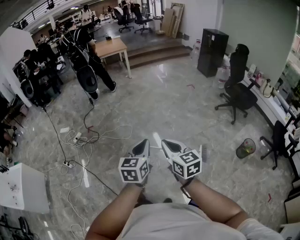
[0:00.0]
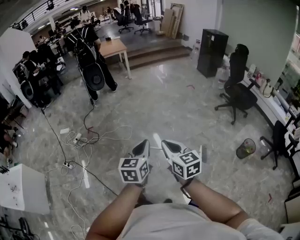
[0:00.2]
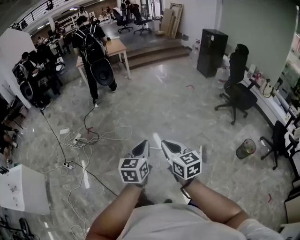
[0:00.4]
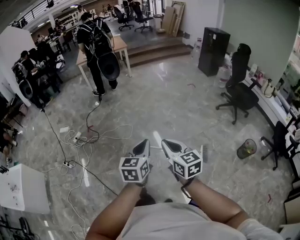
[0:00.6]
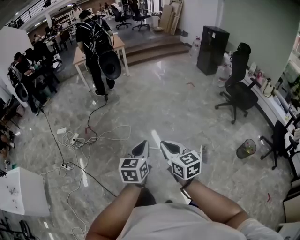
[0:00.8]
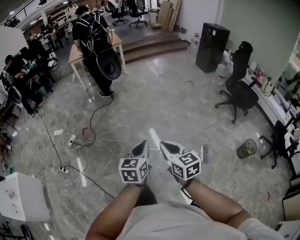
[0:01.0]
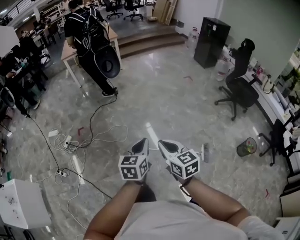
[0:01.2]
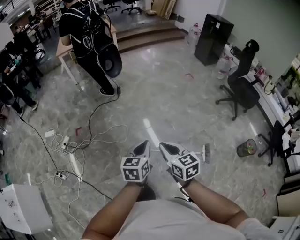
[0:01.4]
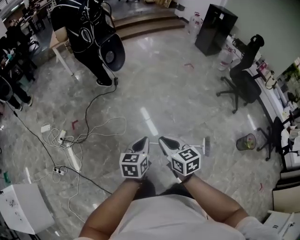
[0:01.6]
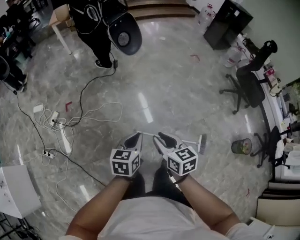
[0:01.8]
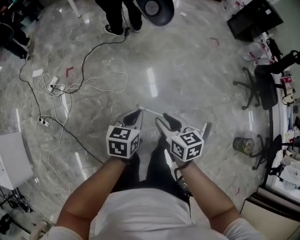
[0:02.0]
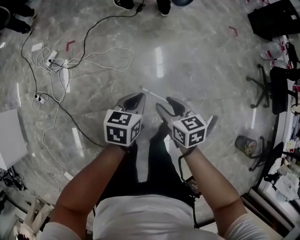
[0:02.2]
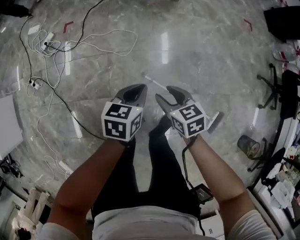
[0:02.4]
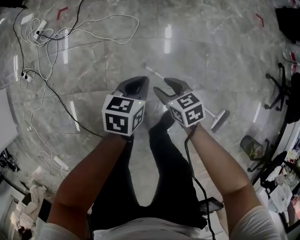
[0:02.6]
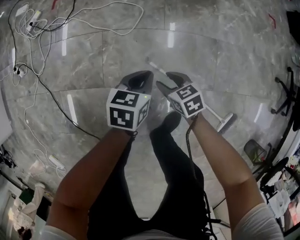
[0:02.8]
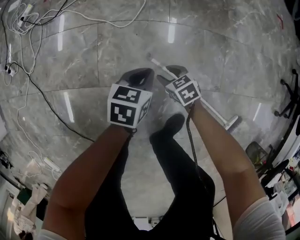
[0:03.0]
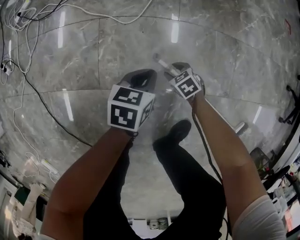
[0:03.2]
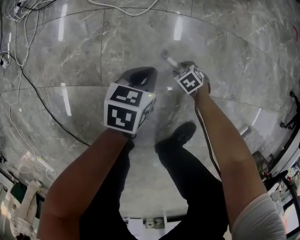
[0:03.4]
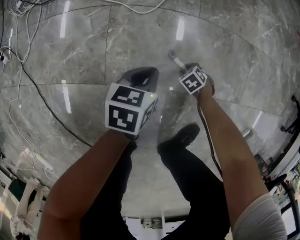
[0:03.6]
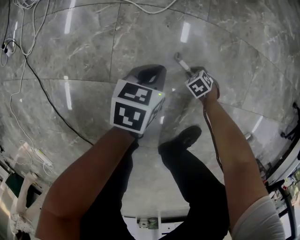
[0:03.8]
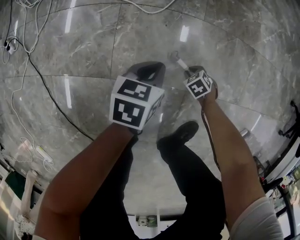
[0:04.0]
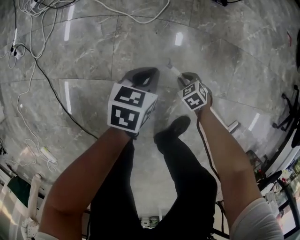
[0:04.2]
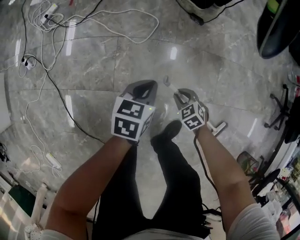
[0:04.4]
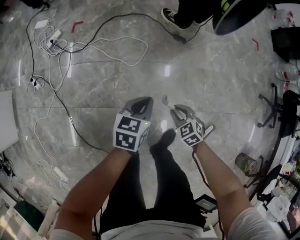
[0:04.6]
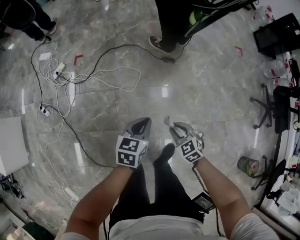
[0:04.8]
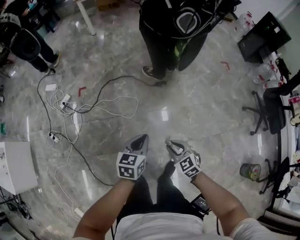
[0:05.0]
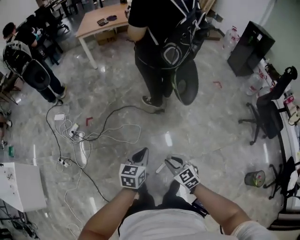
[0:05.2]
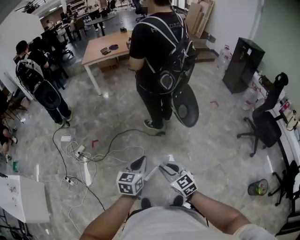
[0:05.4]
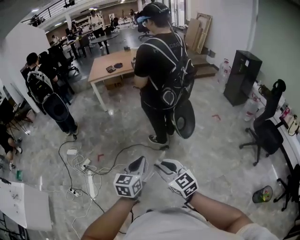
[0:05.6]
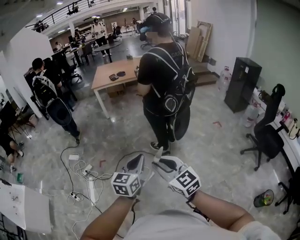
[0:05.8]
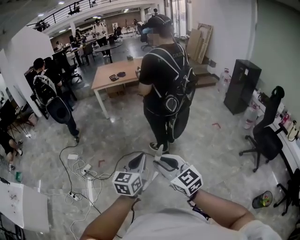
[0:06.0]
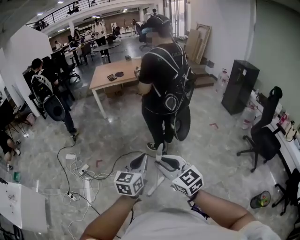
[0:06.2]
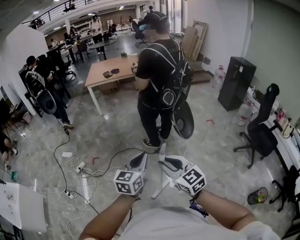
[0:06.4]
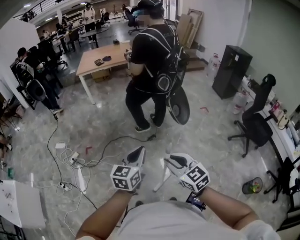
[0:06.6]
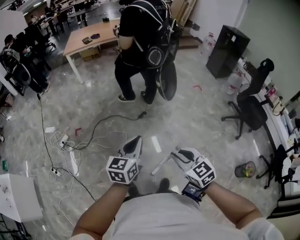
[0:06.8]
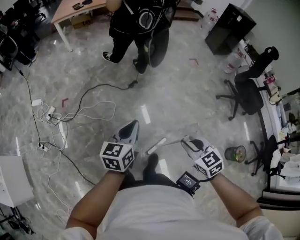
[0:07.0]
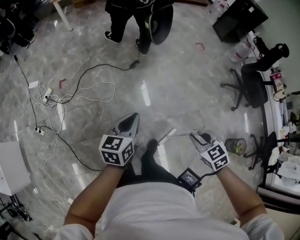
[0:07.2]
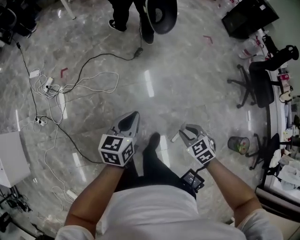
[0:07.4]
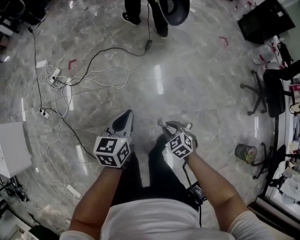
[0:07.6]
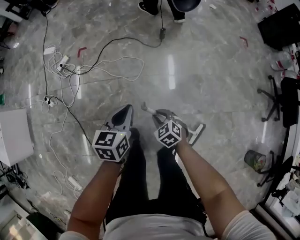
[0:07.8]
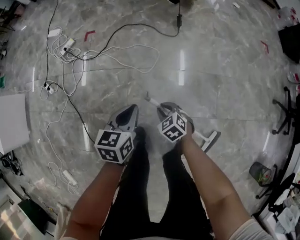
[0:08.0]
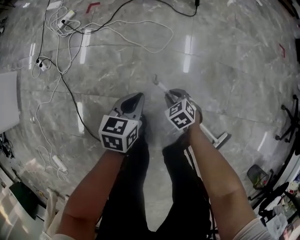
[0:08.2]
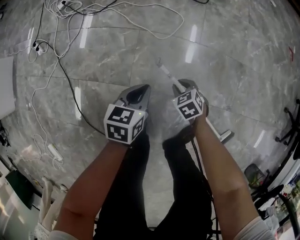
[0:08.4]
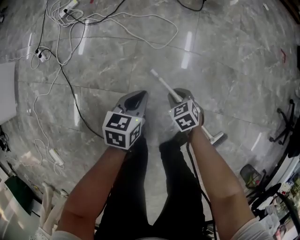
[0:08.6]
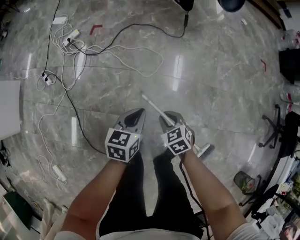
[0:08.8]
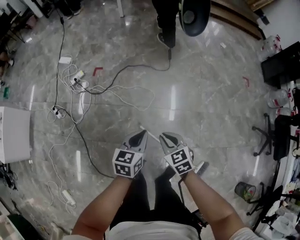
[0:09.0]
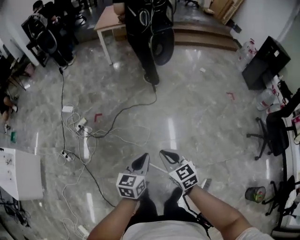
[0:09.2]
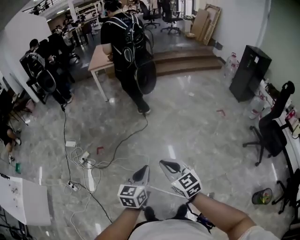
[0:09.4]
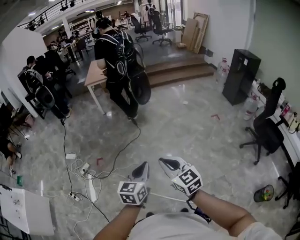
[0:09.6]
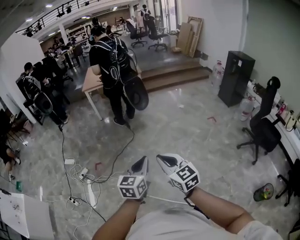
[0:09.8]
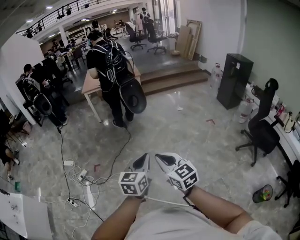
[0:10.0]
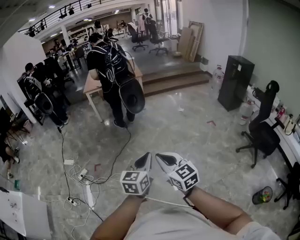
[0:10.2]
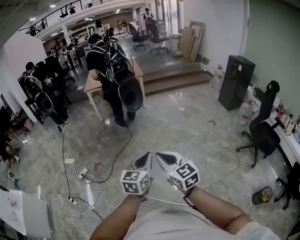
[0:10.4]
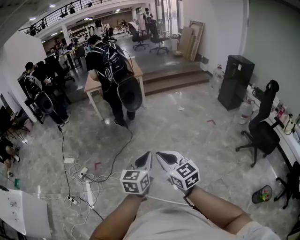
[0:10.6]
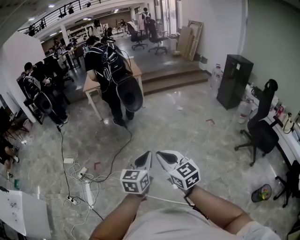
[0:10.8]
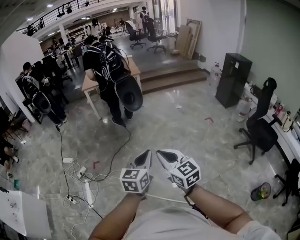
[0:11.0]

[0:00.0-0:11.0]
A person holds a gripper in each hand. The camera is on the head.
0:00.0 to 0:01.6: The left gripper moves forward and downward, roughly 40 cm. Meanwhile the right gripper heads forward, covering about 35 cm.
0:01.6 to 0:03.2: Both grippers move downward, approximately 90 cm. The right gripper tips its fingers downward by roughly 40 degrees, and opens up. Meanwhile the left gripper changes its angle by approximately 30 degrees.
0:03.2 to 0:04.8: Both grippers travel together upward, roughly 50 cm. The right gripper swivels roughly 30 degrees, and closes up.
0:04.8 to 0:06.2: The two grippers go some 50 cm upward. The right gripper points its fingers some 40 degrees further upward. The left gripper swivels approximately 30 degrees.
0:06.2 to 0:07.8: The grippers both shift downward by approximately 60 cm. The left gripper turns by roughly 30 degrees. Meanwhile the right gripper tips its fingers downward by some 50 degrees.
0:07.8 to 0:09.4: The left gripper heads upward, covering approximately 35 cm. The right gripper heads upward, covering about 50 cm, and tilts its fingers some 40 degrees upward.
0:09.4 to 0:11.0: The left gripper shifts some 15 cm upward and to the right. Meanwhile the right gripper shifts some 15 cm upward and backward.

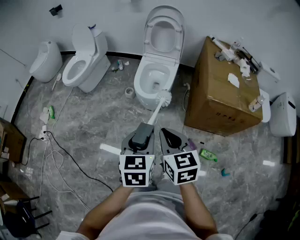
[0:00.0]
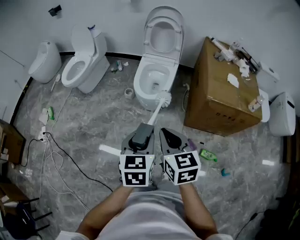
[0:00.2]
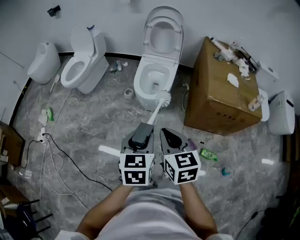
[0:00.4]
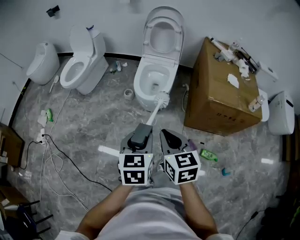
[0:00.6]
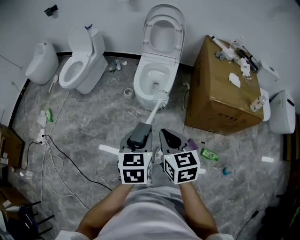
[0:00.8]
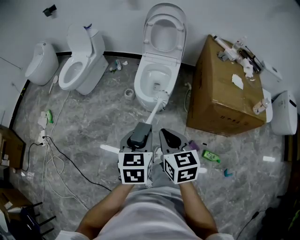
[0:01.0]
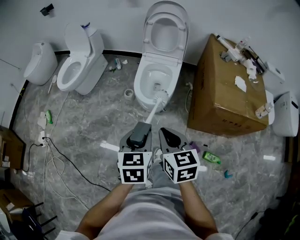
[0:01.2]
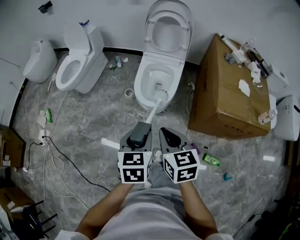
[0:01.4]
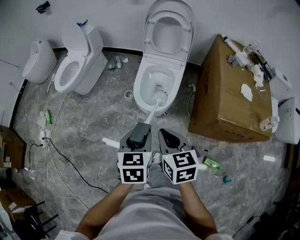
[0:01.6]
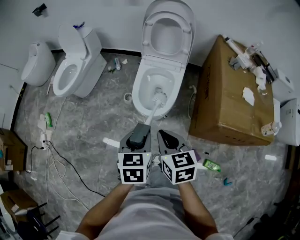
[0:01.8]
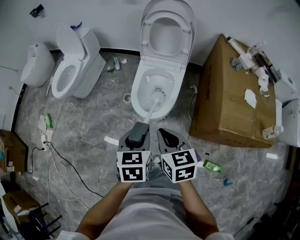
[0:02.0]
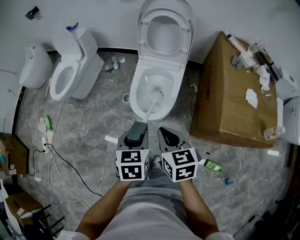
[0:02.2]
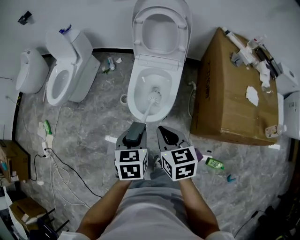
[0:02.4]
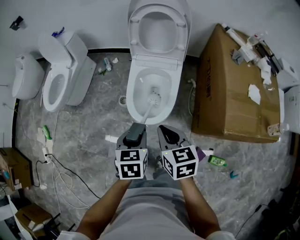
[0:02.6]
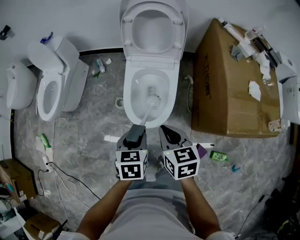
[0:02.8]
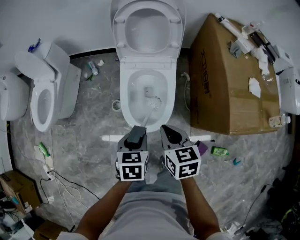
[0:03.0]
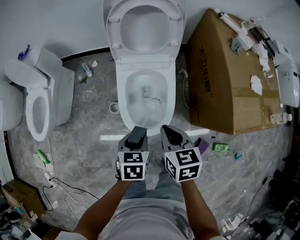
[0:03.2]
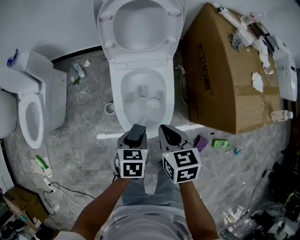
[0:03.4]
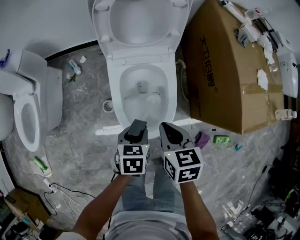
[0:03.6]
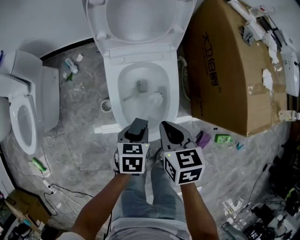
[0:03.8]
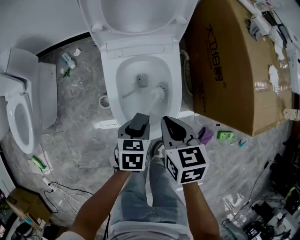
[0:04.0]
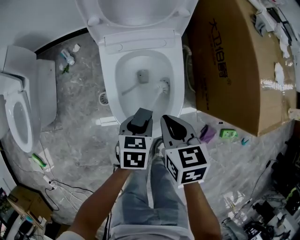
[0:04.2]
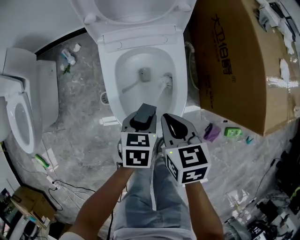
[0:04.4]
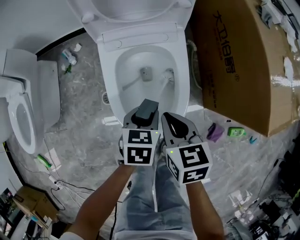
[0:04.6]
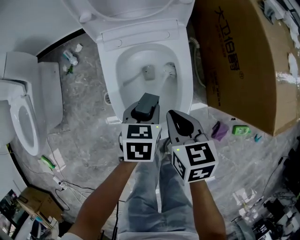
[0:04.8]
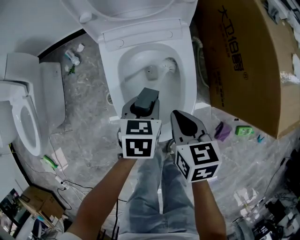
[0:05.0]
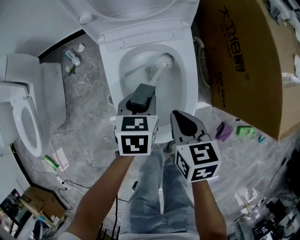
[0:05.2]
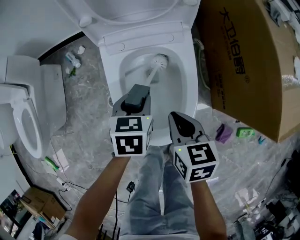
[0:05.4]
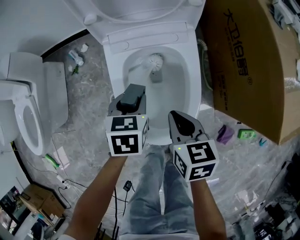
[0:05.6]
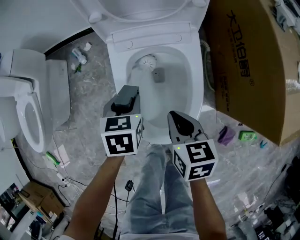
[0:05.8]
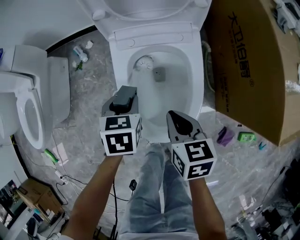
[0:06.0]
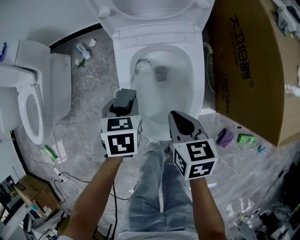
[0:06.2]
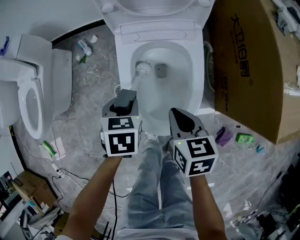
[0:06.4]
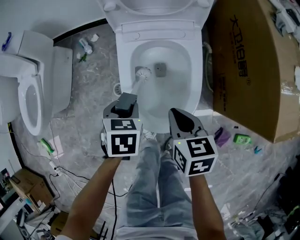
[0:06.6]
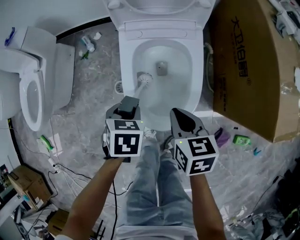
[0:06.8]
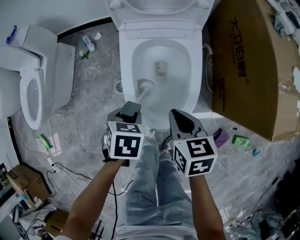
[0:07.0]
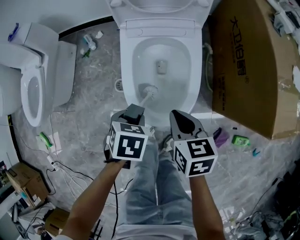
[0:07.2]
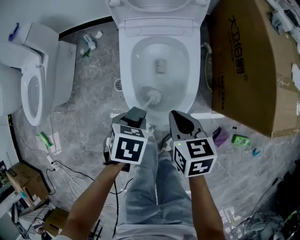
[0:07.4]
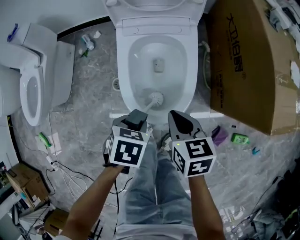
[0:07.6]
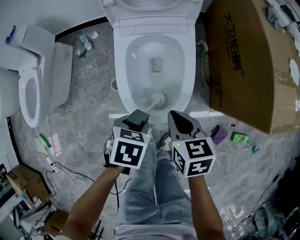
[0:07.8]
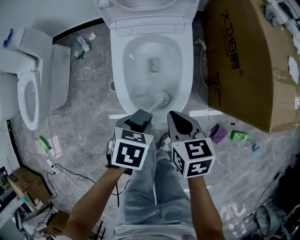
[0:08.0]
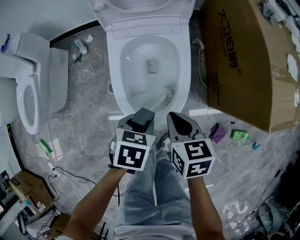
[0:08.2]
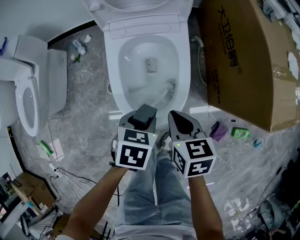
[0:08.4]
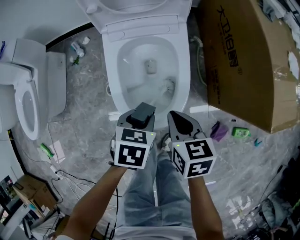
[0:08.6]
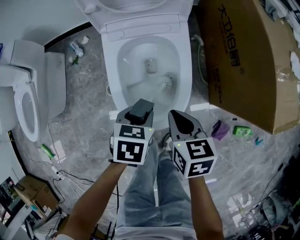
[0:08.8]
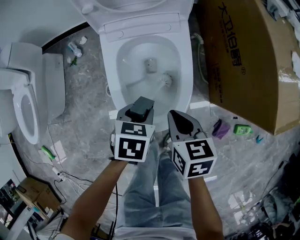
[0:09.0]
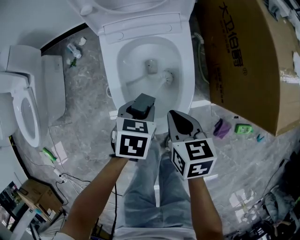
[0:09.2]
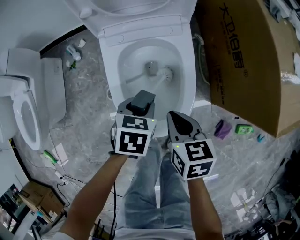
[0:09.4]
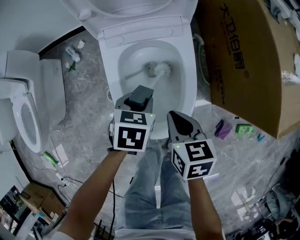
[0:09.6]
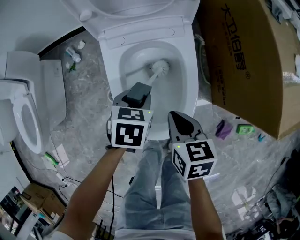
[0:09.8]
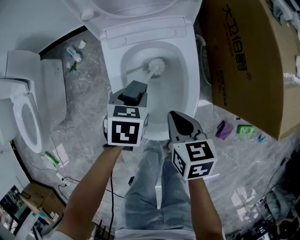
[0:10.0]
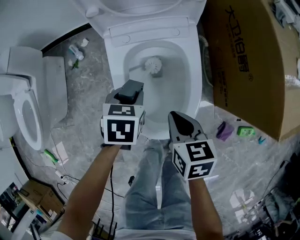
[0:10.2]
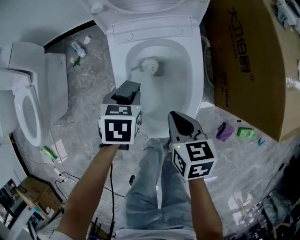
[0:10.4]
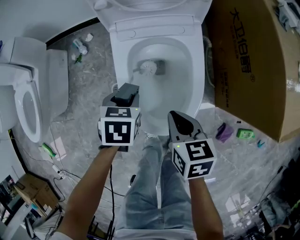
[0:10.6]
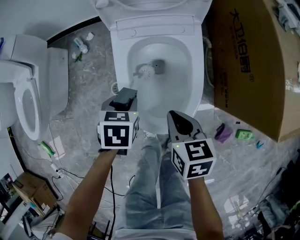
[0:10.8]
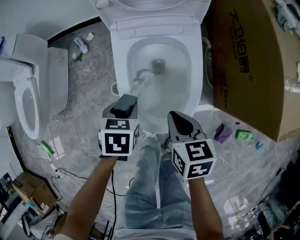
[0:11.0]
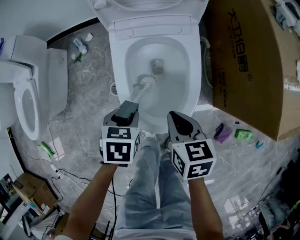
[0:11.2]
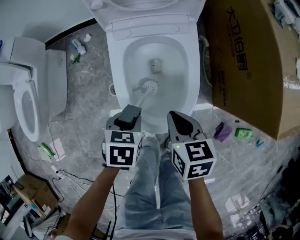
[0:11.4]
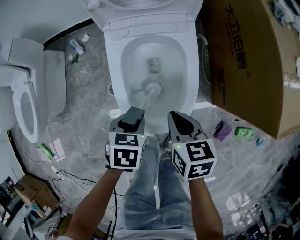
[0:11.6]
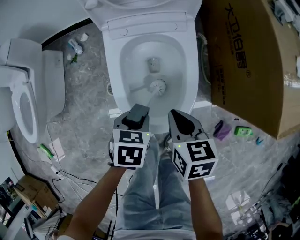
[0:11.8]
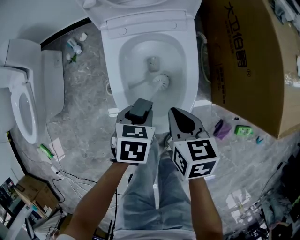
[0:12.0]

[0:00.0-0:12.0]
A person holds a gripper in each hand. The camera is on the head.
0:00.0 to 0:01.6: The grippers both shift forward by approximately 20 cm.
0:01.6 to 0:03.0: Both grippers move forward and downward, some 30 cm. The left gripper swivels roughly 20 degrees.
0:03.0 to 0:04.4: The two grippers go some 20 cm downward and forward.
0:04.4 to 0:06.0: The left gripper moves to the left and forward, approximately 10 cm. Meanwhile the right gripper shifts by about 5 cm.
0:06.0 to 0:07.6: The right gripper ends up about 10 cm from where it was. Meanwhile the left gripper moves some 20 cm.
0:07.6 to 0:09.0: The left gripper goes roughly 10 cm forward.
0:09.0 to 0:10.4: The left gripper heads to the left and forward, covering roughly 10 cm.
0:10.4 to 0:12.0: The left gripper shifts some 10 cm backward and to the right.

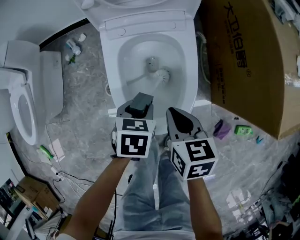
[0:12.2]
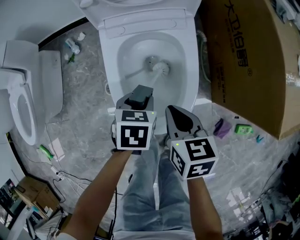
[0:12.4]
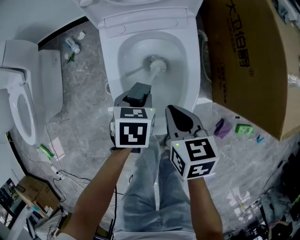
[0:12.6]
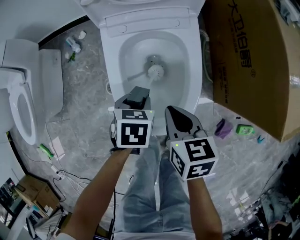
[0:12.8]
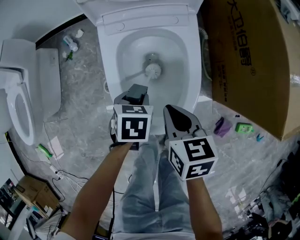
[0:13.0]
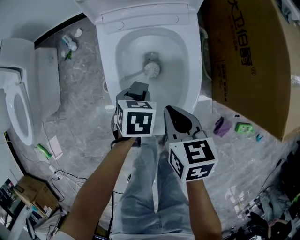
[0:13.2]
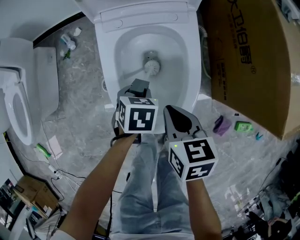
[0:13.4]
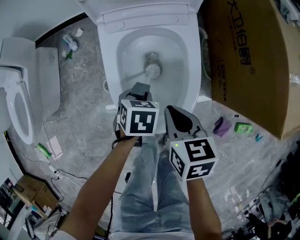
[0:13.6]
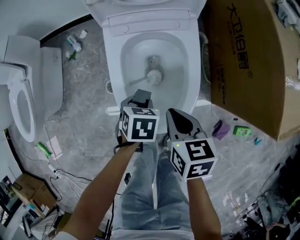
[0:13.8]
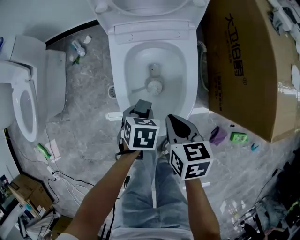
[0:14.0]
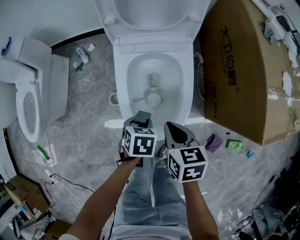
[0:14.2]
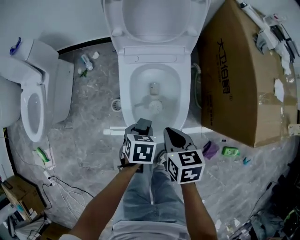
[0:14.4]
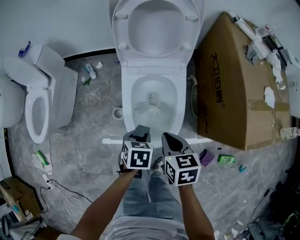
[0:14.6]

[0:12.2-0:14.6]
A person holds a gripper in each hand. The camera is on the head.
0:12.2 to 0:13.4: The left gripper moves downward, roughly 5 cm.
0:13.4 to 0:14.6: The left gripper goes about 20 cm upward and backward. The right gripper moves upward, approximately 15 cm.
